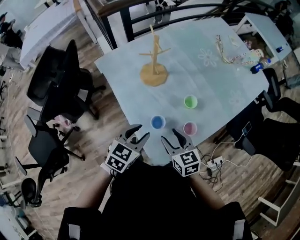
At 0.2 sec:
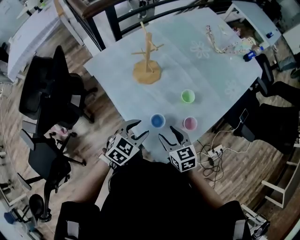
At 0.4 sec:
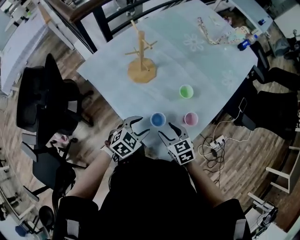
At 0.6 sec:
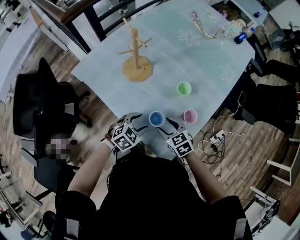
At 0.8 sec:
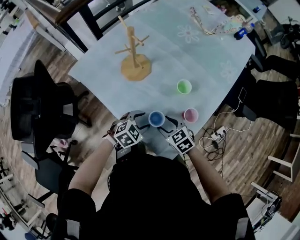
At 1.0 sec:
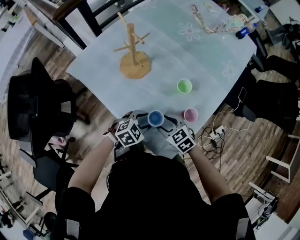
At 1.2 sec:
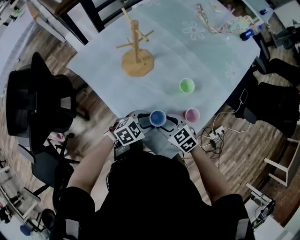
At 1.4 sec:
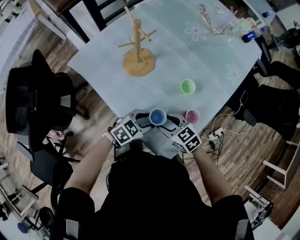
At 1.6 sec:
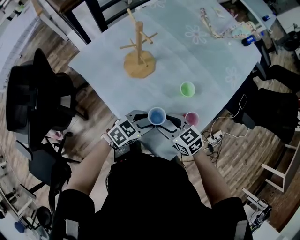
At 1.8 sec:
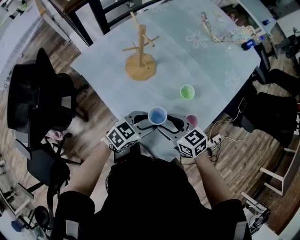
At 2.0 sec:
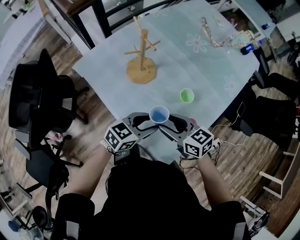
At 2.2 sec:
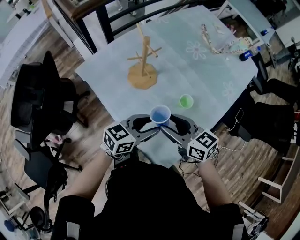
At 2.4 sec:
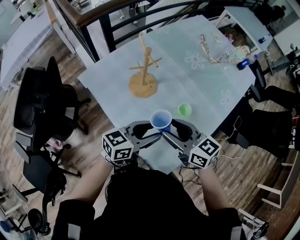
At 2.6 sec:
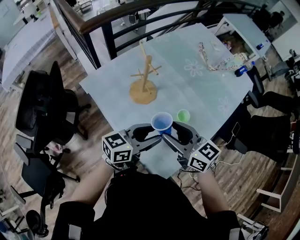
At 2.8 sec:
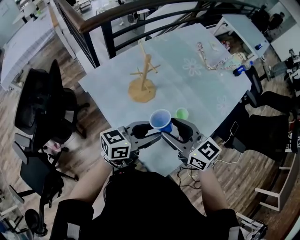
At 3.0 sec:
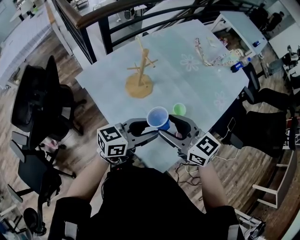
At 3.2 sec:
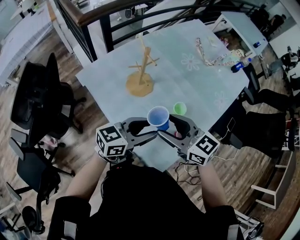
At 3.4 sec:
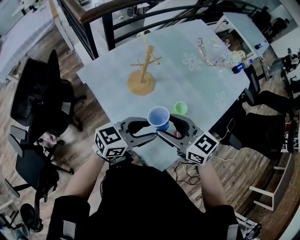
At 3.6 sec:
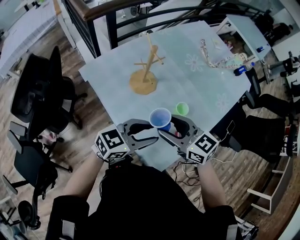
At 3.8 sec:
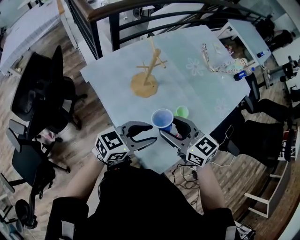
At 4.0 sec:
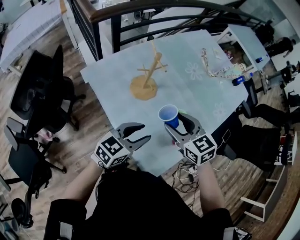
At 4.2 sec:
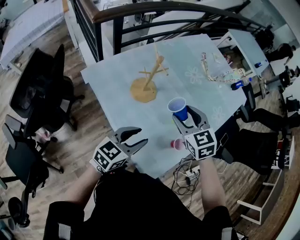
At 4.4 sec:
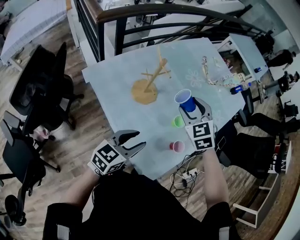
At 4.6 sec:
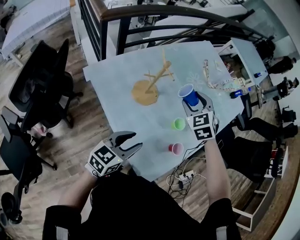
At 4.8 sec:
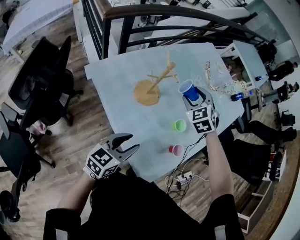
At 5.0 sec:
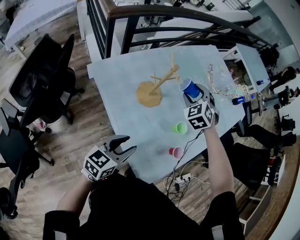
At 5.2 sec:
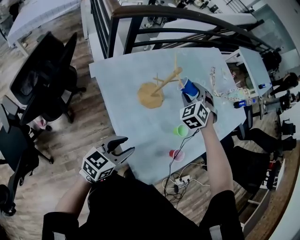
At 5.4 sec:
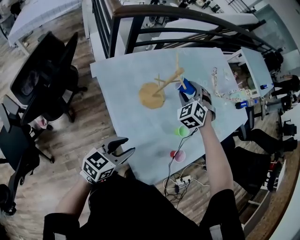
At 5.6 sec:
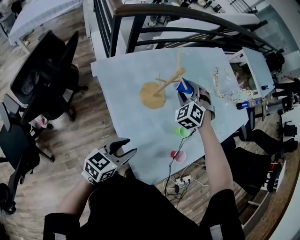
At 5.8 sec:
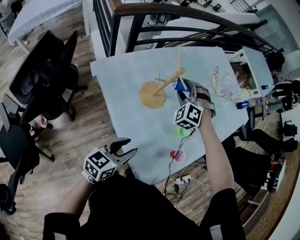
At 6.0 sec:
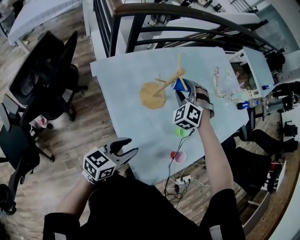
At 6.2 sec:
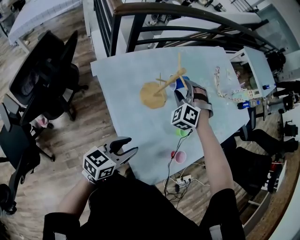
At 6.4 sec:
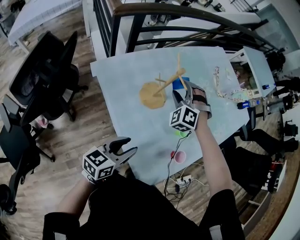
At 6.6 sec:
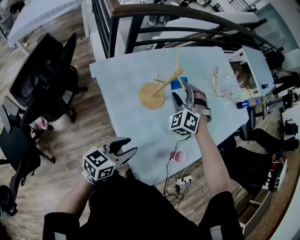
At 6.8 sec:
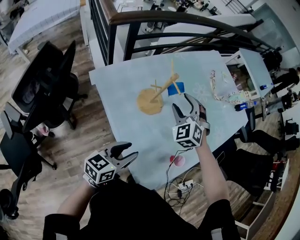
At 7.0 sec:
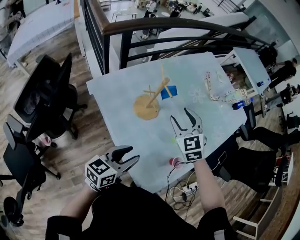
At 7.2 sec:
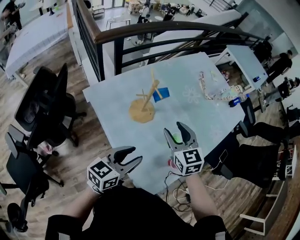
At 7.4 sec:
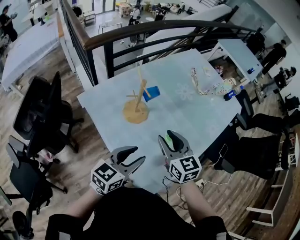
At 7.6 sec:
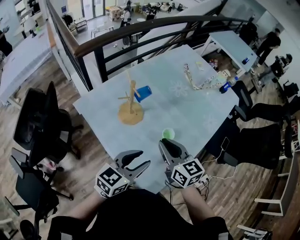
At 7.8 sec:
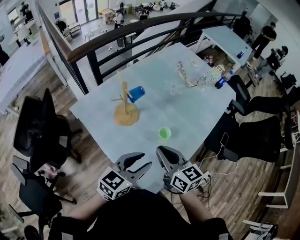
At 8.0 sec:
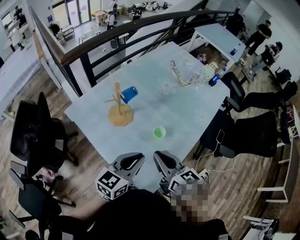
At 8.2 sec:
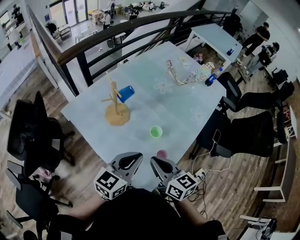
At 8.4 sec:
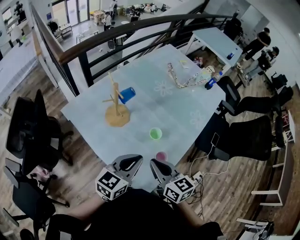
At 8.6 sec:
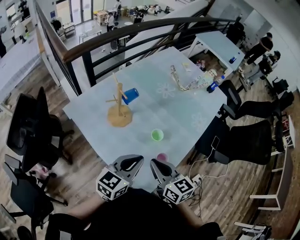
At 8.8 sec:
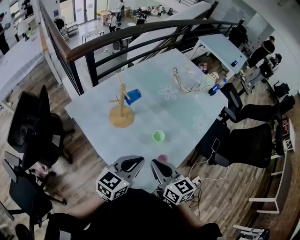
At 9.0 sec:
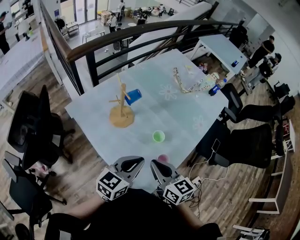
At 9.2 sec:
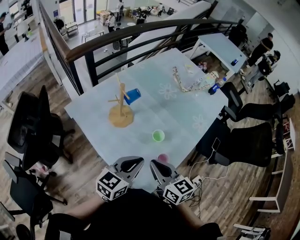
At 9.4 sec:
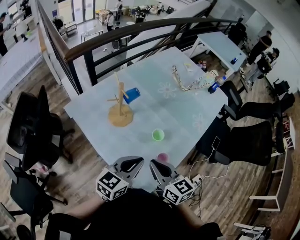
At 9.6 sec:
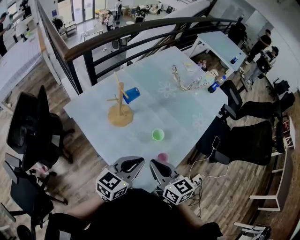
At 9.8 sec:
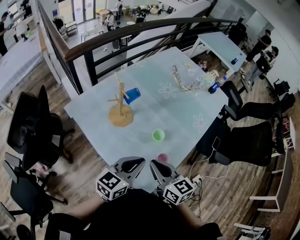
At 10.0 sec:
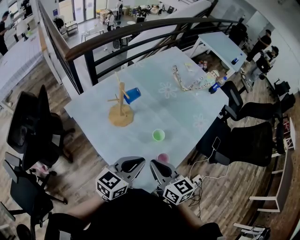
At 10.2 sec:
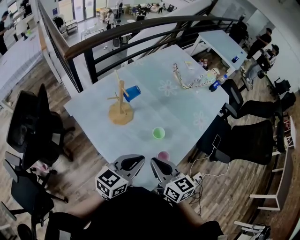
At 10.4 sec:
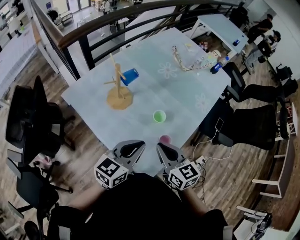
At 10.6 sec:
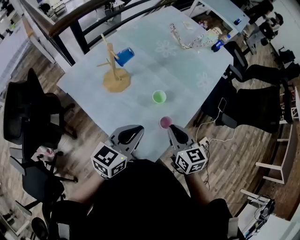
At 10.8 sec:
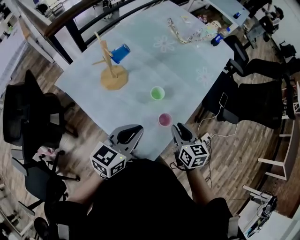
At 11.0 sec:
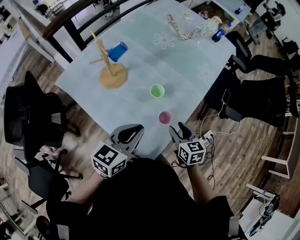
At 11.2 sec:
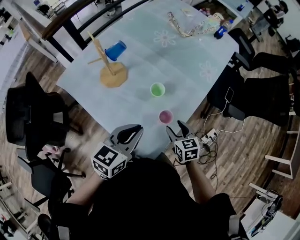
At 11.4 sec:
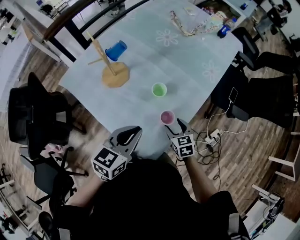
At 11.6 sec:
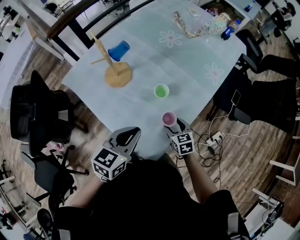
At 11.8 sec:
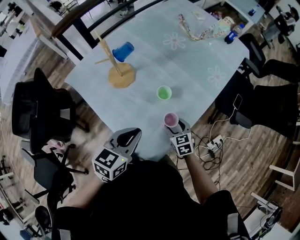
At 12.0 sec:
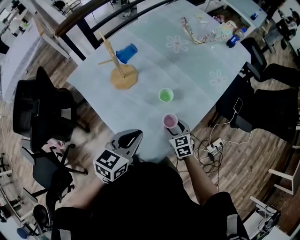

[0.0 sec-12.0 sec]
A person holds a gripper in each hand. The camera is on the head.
0.0 sec to 1.6 sec: The right gripper heads downward, covering roughly 10 cm, while the left gripper moves downward, roughly 10 cm, and changes its angle by approximately 40 degrees.
1.6 sec to 3.0 sec: The grippers both shift upward by approximately 20 cm. The right gripper swivels roughly 20 degrees. Meanwhile the left gripper tips its fingers upward by some 30 degrees.
3.0 sec to 4.4 sec: The right gripper ends up some 15 cm from where it was, and turns by about 50 degrees, while the left gripper ends up approximately 5 cm from where it was, and rotates some 20 degrees.
4.4 sec to 6.0 sec: The right gripper travels to the left, forward and downward by approximately 15 cm, and rolls counterclockwise, seen from behind, by approximately 40 degrees. Meanwhile the left gripper ends up some 5 cm from where it was.
6.0 sec to 7.6 sec: The left gripper heads to the right and upward, covering roughly 15 cm, and turns by approximately 20 degrees, while the right gripper shifts some 25 cm backward and to the right, twists roughly 90 degrees clockwise, seen from behind, and closes up.
7.6 sec to 9.0 sec: The right gripper shifts some 10 cm backward. The left gripper closes its fingers.
9.0 sec to 10.4 sec: There are only small adjustments of the grippers.
10.4 sec to 12.0 sec: The right gripper heads downward, covering some 25 cm, changes its angle by some 30 degrees, and opens its fingers. Meanwhile the left gripper heads downward, covering roughly 5 cm.

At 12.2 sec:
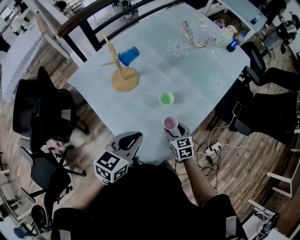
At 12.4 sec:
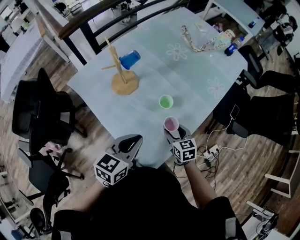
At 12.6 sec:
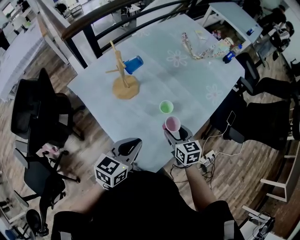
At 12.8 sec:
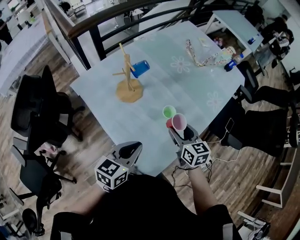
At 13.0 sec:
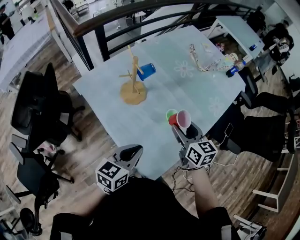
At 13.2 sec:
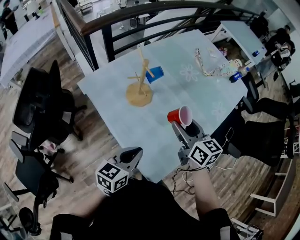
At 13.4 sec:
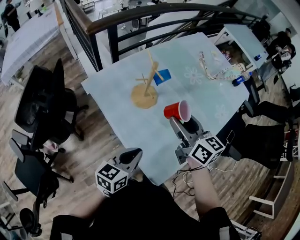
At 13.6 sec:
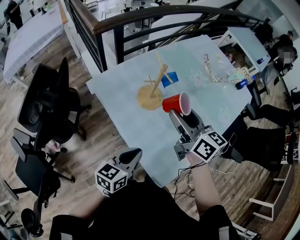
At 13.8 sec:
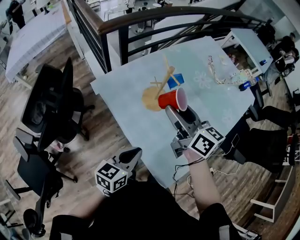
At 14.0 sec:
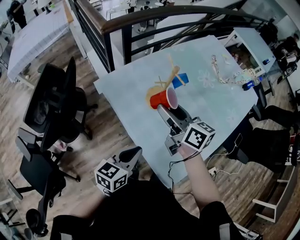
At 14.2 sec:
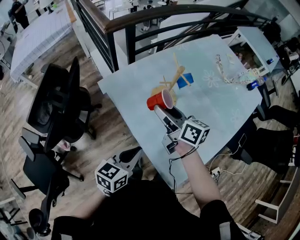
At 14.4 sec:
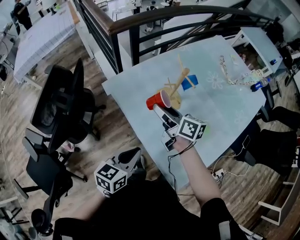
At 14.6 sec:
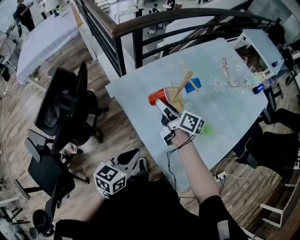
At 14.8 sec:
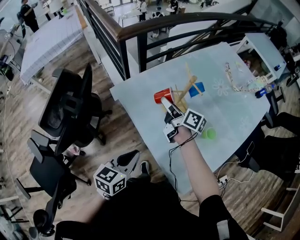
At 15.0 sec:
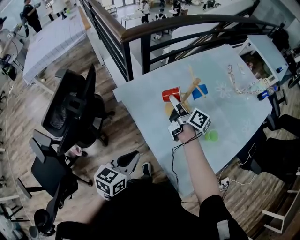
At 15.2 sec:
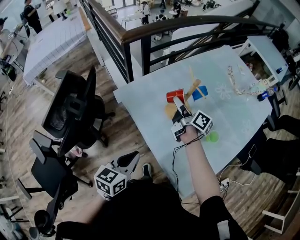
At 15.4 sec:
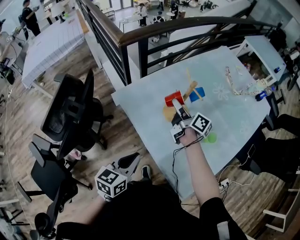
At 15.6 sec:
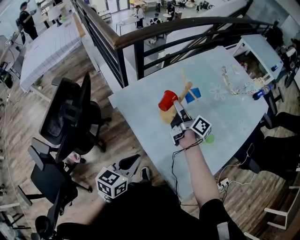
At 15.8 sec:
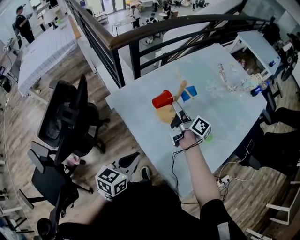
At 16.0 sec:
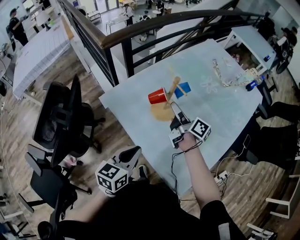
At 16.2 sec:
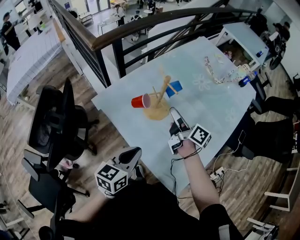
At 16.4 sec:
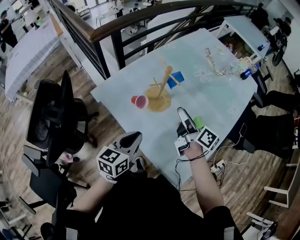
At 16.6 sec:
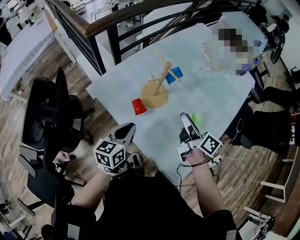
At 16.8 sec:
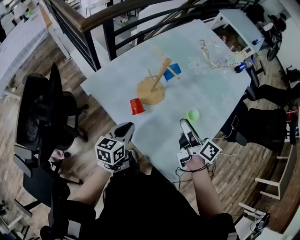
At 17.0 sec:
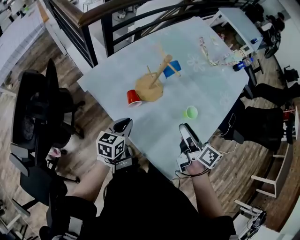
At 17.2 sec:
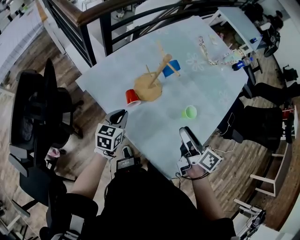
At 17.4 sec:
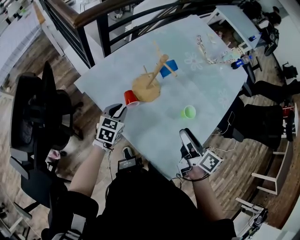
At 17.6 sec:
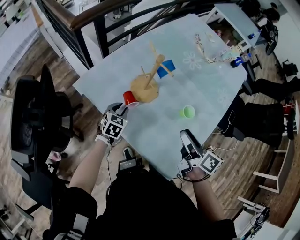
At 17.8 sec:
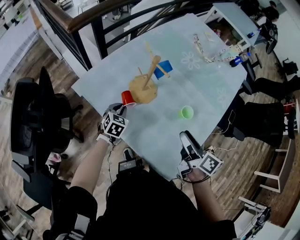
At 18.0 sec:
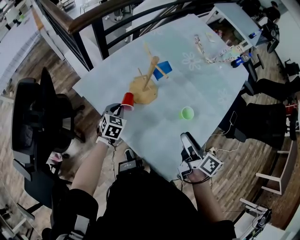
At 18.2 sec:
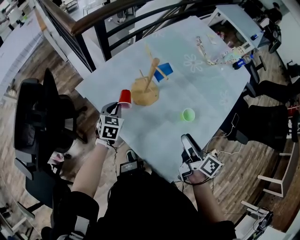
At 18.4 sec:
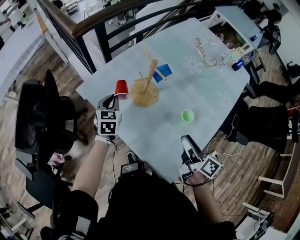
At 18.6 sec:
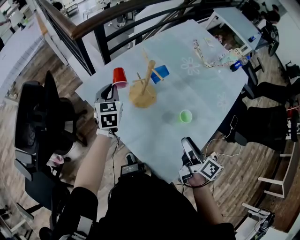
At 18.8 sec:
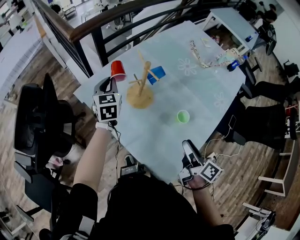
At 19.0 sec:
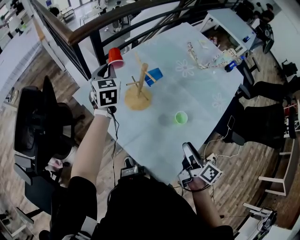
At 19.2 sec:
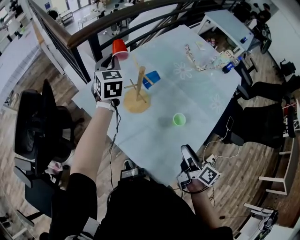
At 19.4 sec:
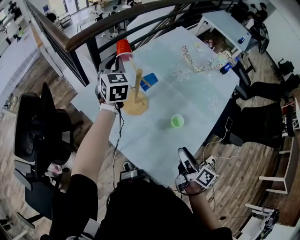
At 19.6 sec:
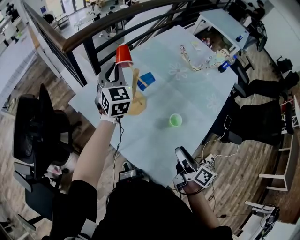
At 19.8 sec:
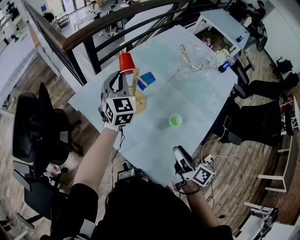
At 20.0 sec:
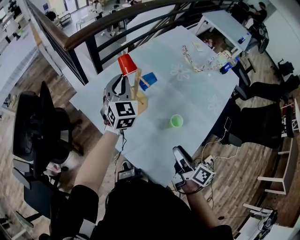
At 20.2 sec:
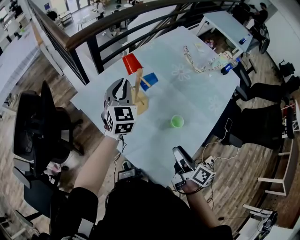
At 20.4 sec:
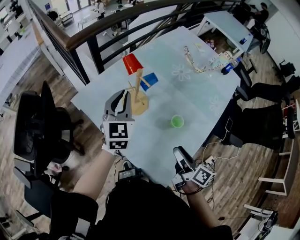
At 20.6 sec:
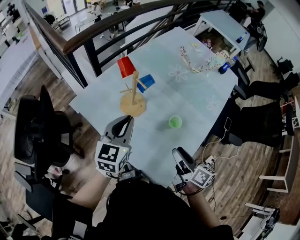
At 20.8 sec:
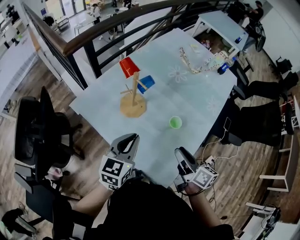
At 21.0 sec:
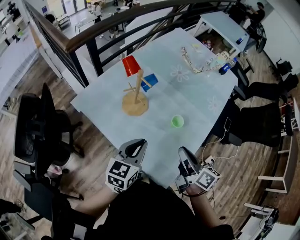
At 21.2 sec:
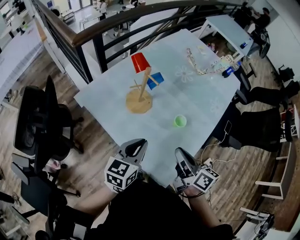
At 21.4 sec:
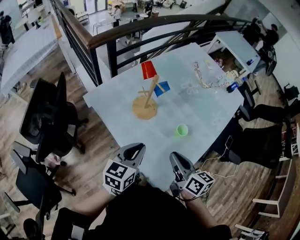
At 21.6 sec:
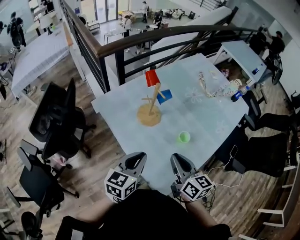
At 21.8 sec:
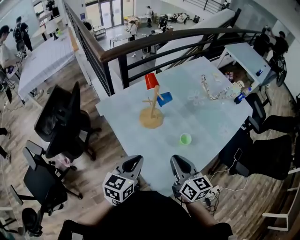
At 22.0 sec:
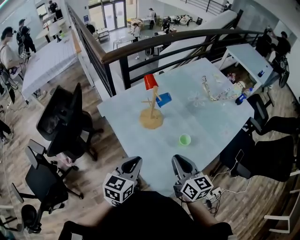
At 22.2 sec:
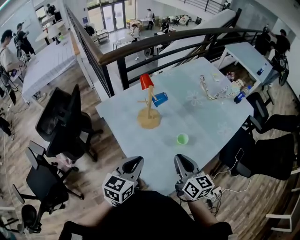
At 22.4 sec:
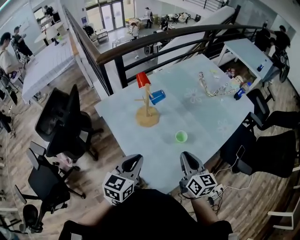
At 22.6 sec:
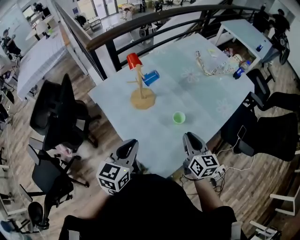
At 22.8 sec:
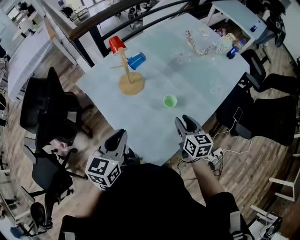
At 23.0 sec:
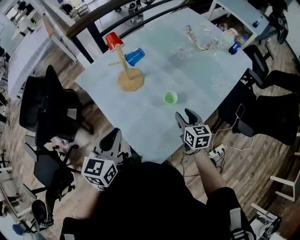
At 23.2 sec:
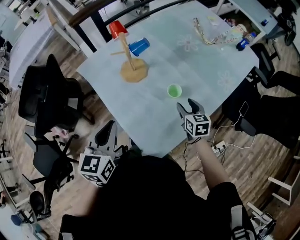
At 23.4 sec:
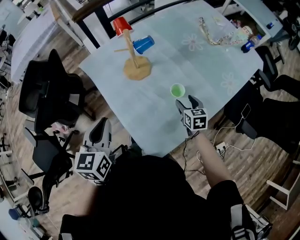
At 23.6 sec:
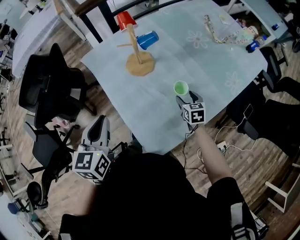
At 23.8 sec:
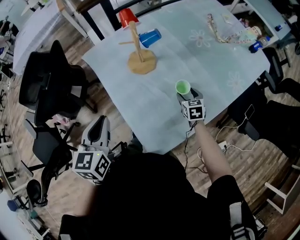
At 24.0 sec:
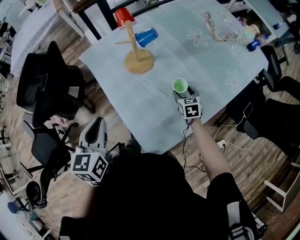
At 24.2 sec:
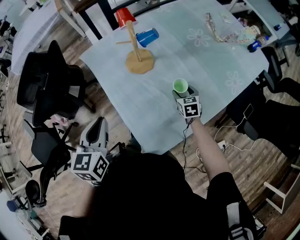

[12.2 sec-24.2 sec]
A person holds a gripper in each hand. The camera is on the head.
12.2 sec to 13.8 sec: The left gripper goes roughly 20 cm to the left; the right gripper travels upward and to the left by about 40 cm, and angles its fingers upward, by some 40 degrees.
13.8 sec to 15.2 sec: The left gripper moves to the left, some 10 cm, while the right gripper shifts some 20 cm downward, forward and to the left, and rotates approximately 40 degrees.
15.2 sec to 16.6 sec: The left gripper is displaced forward and to the right by some 10 cm; the right gripper shifts some 20 cm to the right and backward.
16.6 sec to 18.2 sec: The left gripper heads forward and downward, covering about 15 cm, rotates about 30 degrees, and opens and closes again. Meanwhile the right gripper heads backward and to the right, covering roughly 10 cm.
18.2 sec to 19.8 sec: The right gripper ends up approximately 5 cm from where it was; the left gripper shifts about 25 cm upward and to the right, and tilts its fingers approximately 30 degrees upward.
19.8 sec to 21.2 sec: The left gripper travels backward by some 25 cm, and changes its angle by some 50 degrees, while the right gripper moves upward and to the left, roughly 5 cm, and closes up.
21.2 sec to 22.6 sec: The left gripper moves backward, roughly 5 cm, while the right gripper goes roughly 10 cm to the right, and turns by about 30 degrees.
22.6 sec to 24.2 sec: The right gripper is displaced downward and forward by approximately 25 cm, swivels about 30 degrees, and opens. The left gripper goes about 5 cm to the left, and rotates roughly 20 degrees.
